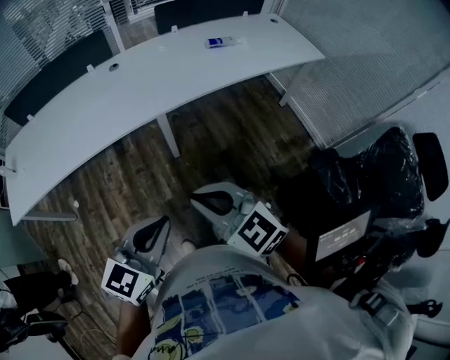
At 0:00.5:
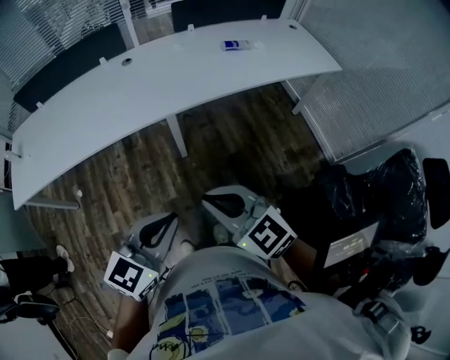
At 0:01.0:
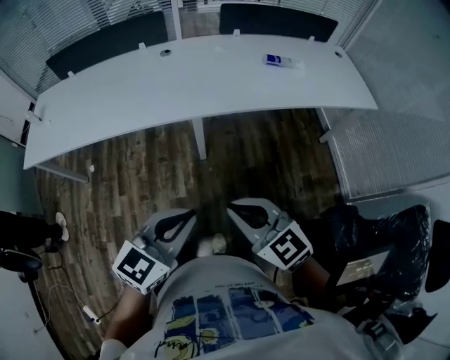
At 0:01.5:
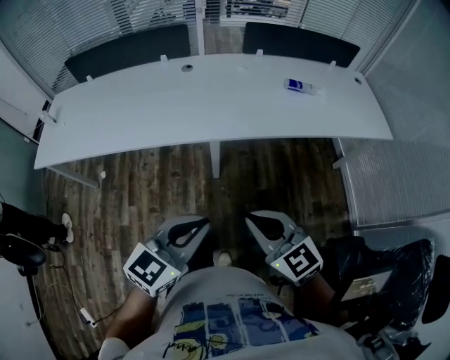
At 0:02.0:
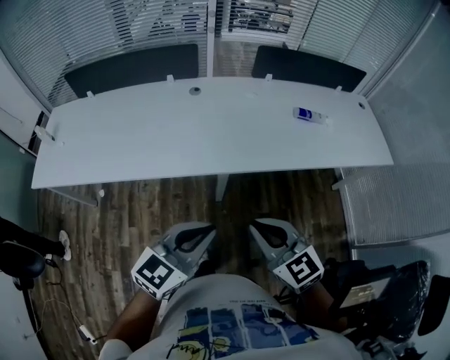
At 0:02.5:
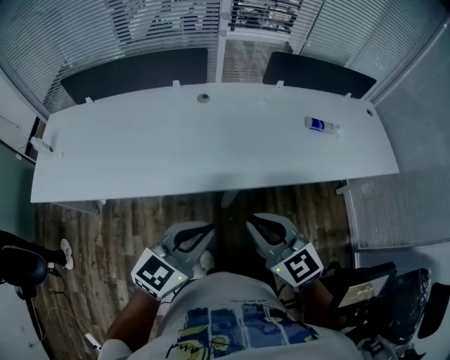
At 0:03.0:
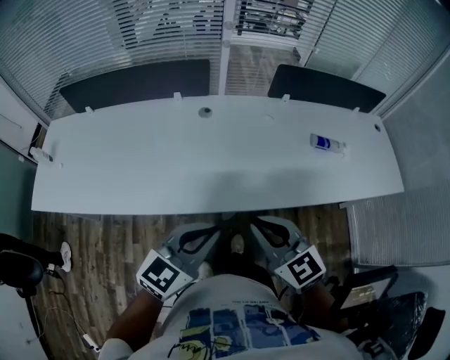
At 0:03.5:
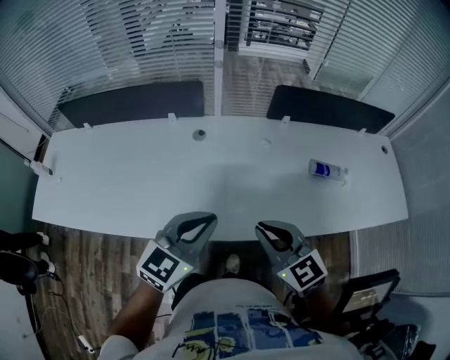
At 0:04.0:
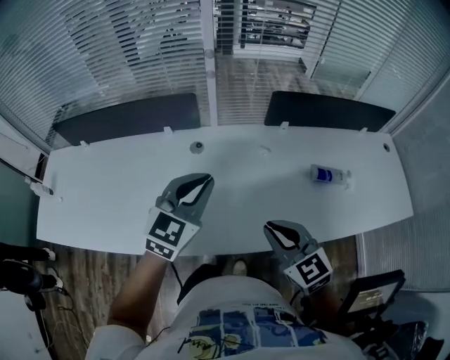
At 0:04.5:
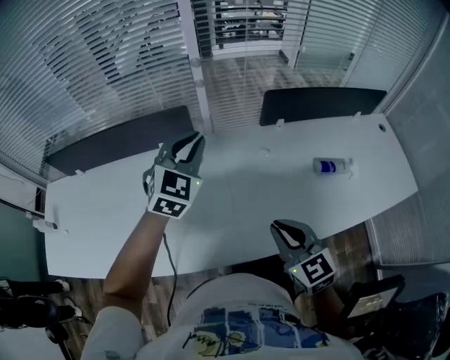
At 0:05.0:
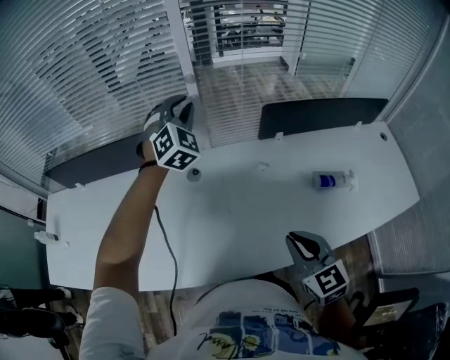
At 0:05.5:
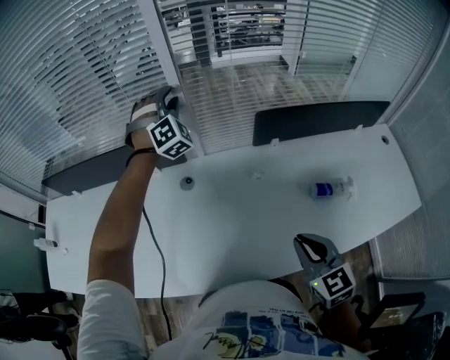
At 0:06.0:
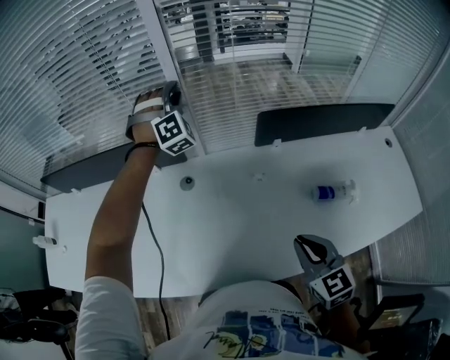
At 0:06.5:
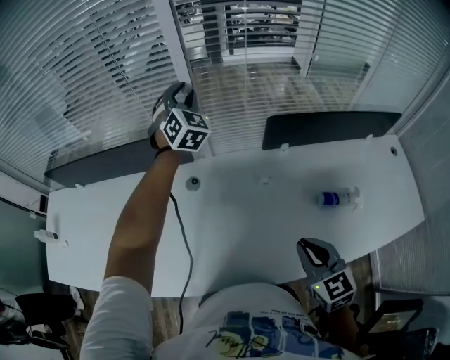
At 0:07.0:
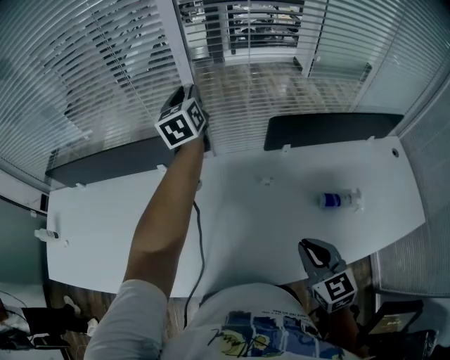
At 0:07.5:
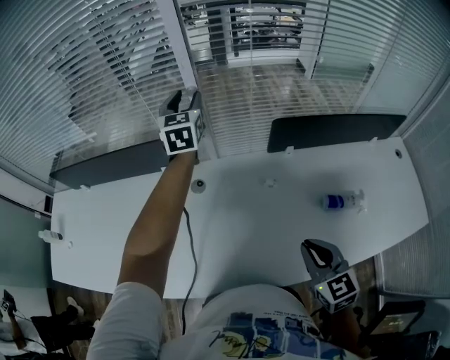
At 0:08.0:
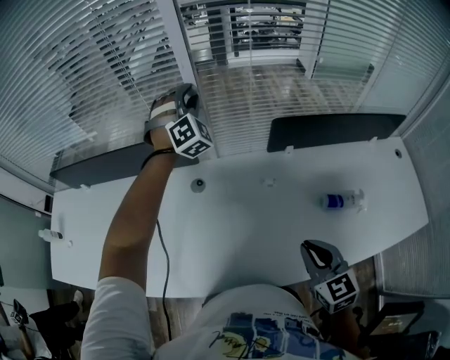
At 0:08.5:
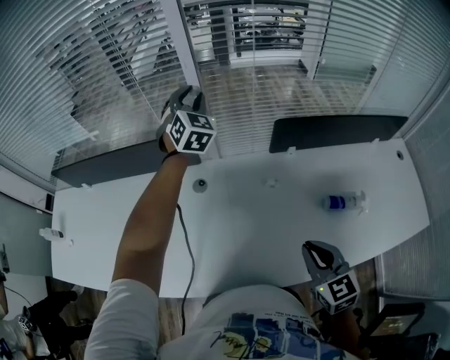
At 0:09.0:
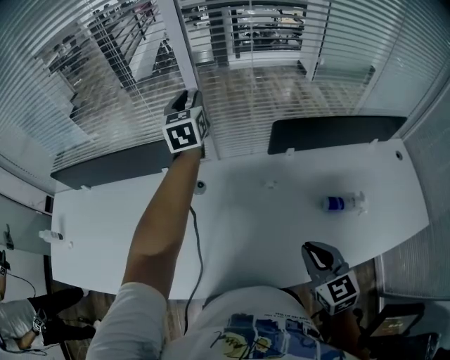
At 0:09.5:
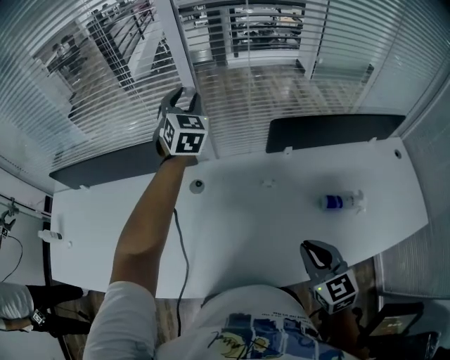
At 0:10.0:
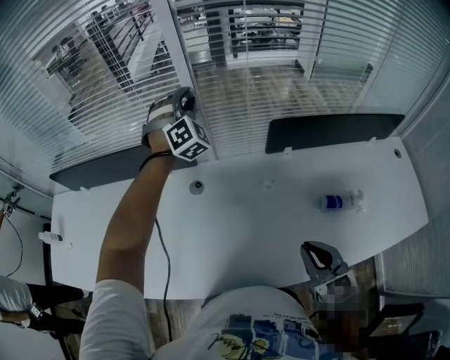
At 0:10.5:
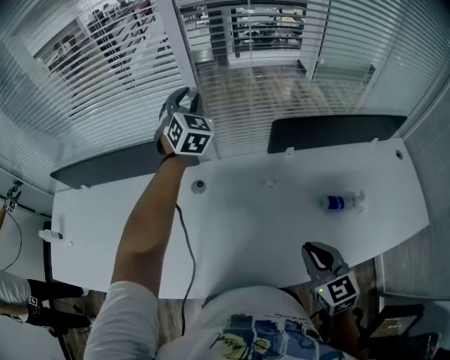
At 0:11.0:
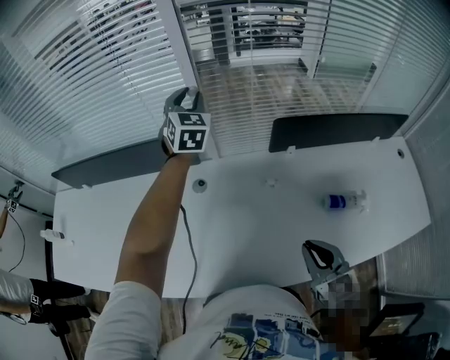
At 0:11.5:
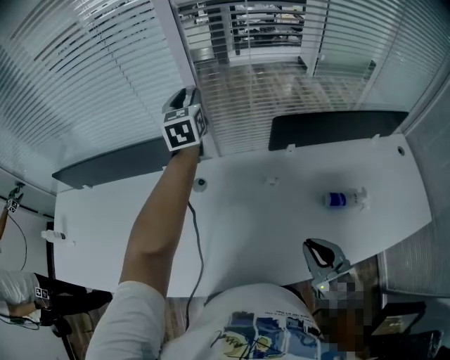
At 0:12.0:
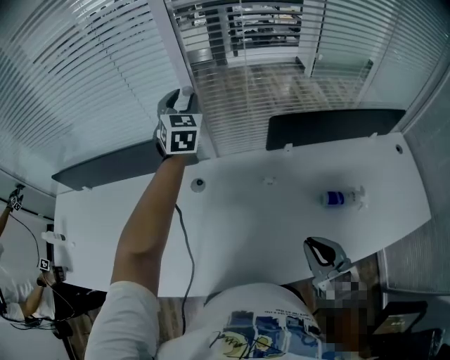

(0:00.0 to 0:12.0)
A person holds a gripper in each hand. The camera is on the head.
0:00.0 - 0:02.0: The two grippers go some 20 cm forward.
0:02.0 - 0:04.0: The two grippers go some 40 cm forward. The left gripper changes its angle by about 20 degrees.
0:04.0 - 0:06.0: The left gripper heads forward, covering about 40 cm, rotates around the line of its fingers by about 60 degrees, clockwise from behind, and opens. The right gripper moves to the right and forward, approximately 15 cm.
0:10.0 - 0:12.0: The left gripper rotates around the line of its fingers by some 50 degrees, counterclockwise from behind.

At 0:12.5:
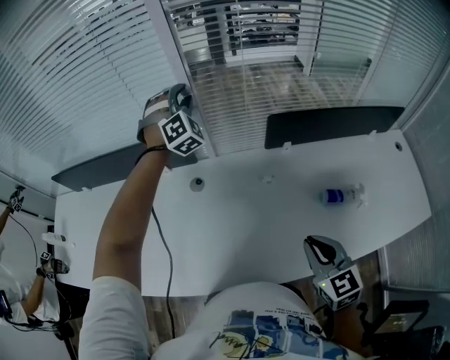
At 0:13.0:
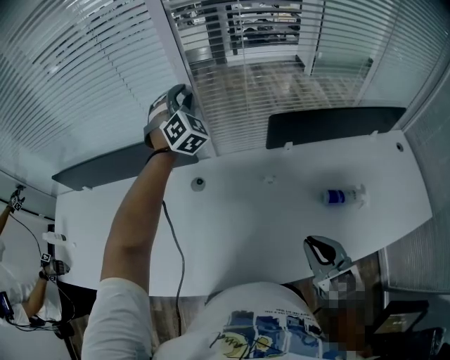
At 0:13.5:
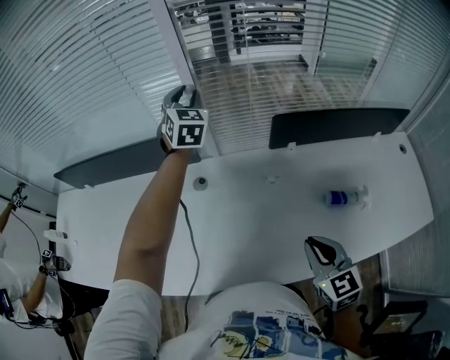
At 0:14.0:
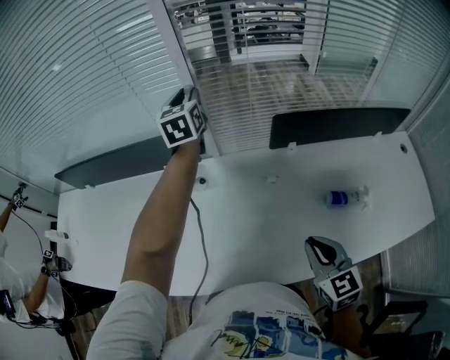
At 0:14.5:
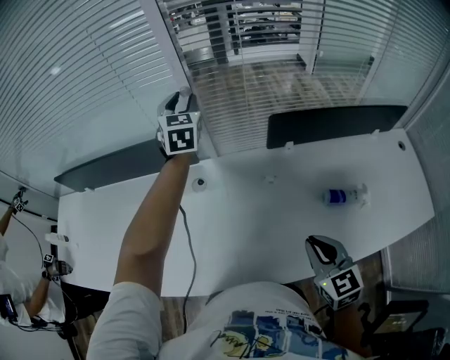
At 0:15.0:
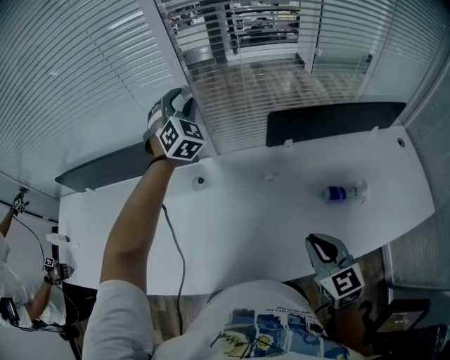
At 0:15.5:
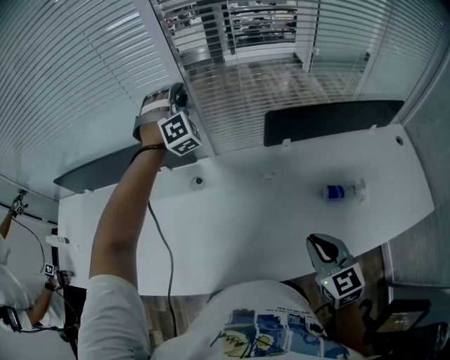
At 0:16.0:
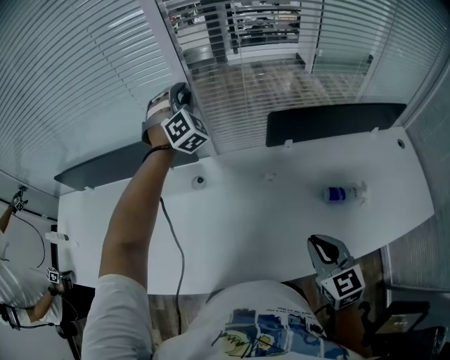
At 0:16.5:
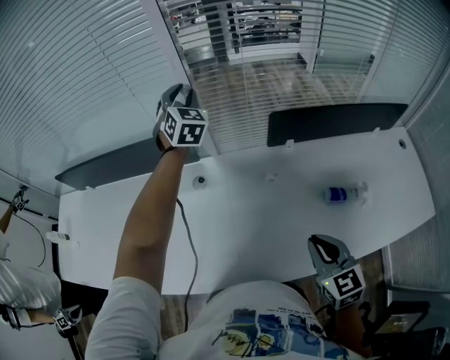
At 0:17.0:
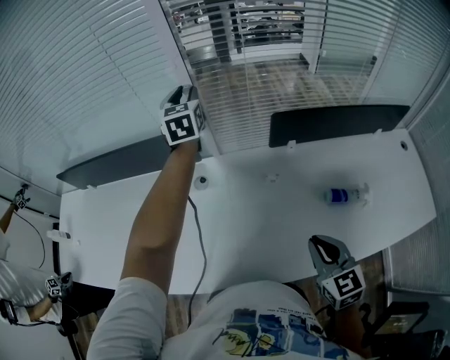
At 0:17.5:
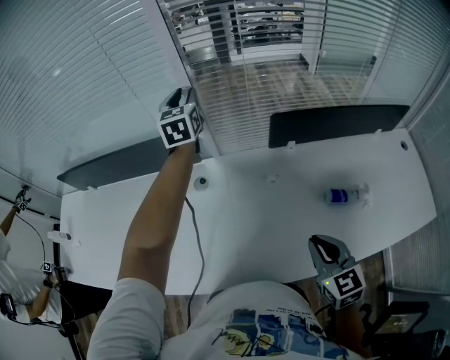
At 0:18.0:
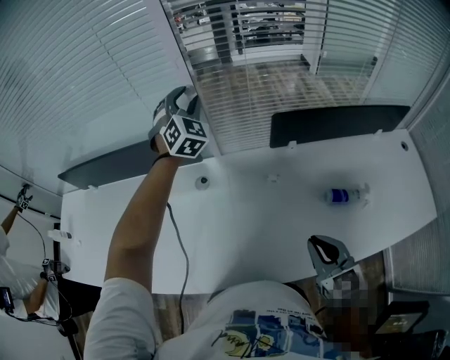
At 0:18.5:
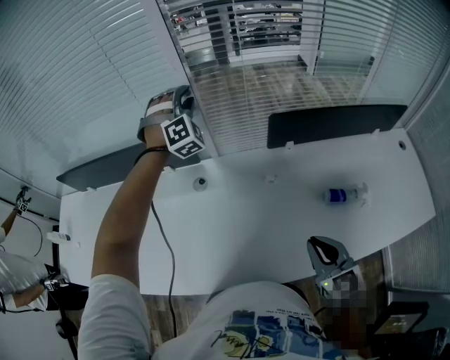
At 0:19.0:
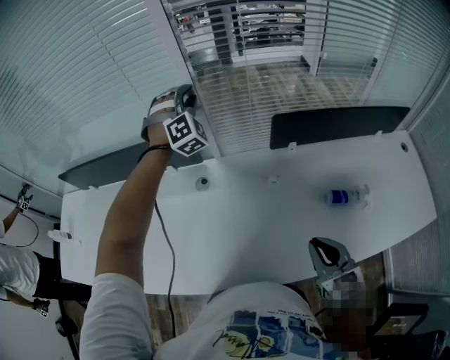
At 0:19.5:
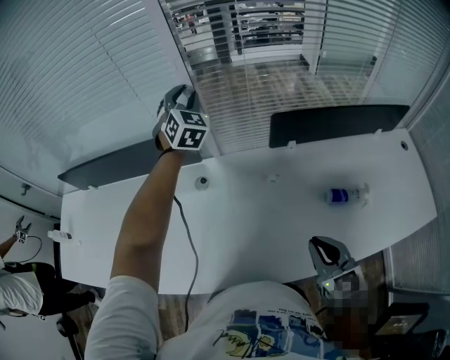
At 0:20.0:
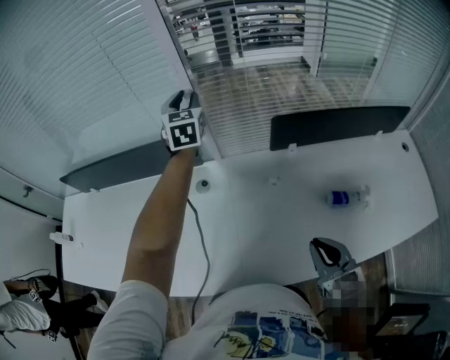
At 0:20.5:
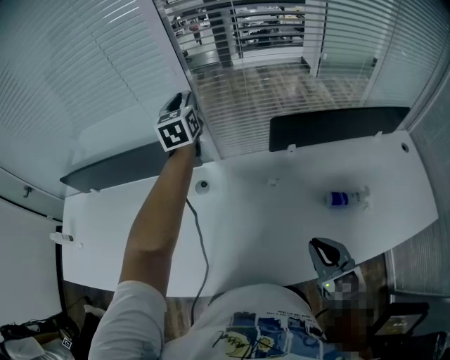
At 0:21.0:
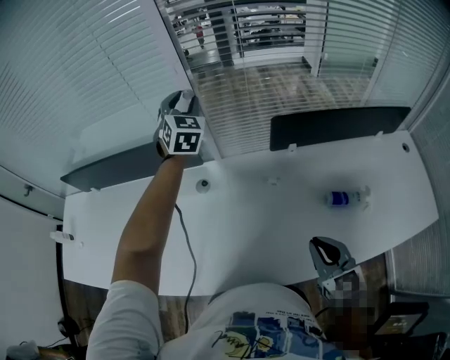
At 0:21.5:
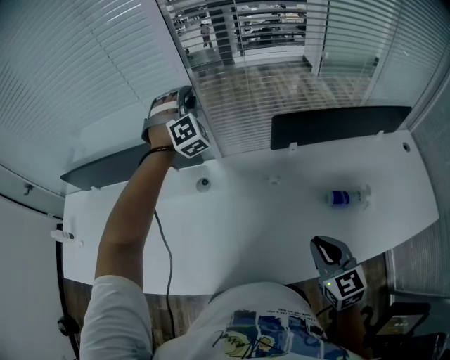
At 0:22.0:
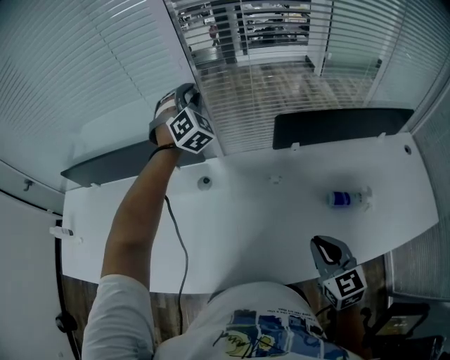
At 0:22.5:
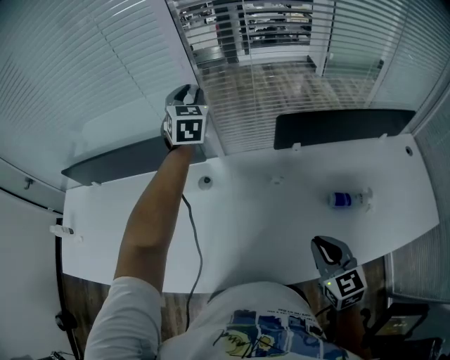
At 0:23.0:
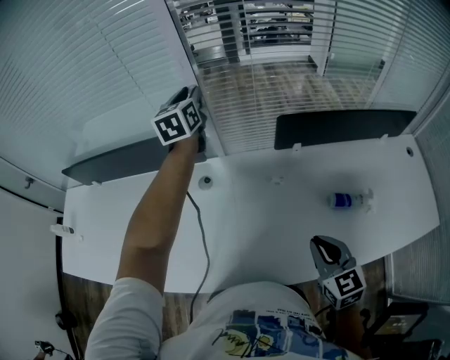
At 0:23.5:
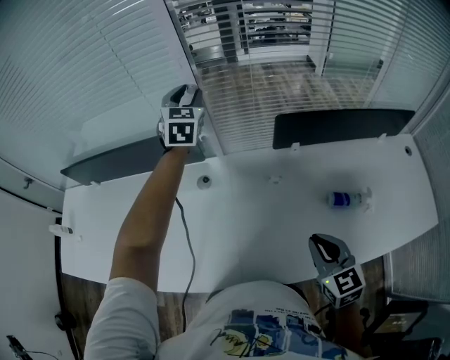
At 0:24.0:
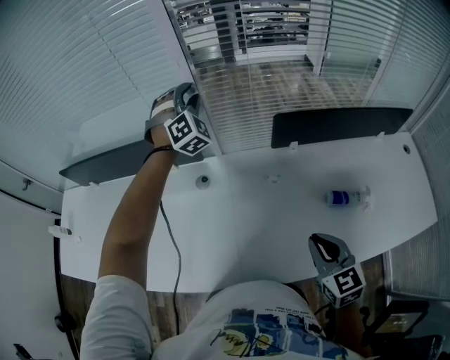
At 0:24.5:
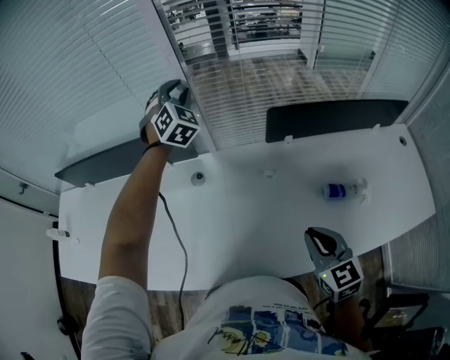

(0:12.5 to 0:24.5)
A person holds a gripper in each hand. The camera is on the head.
0:12.5 - 0:14.5: The left gripper rotates around the line of its fingers by approximately 60 degrees, counterclockwise from behind.
0:16.5 - 0:18.5: The left gripper twists about 50 degrees clockwise, seen from behind.
0:18.5 - 0:20.5: The left gripper twists approximately 80 degrees counterclockwise, seen from behind.
0:20.5 - 0:22.5: The left gripper changes its angle by approximately 20 degrees.
0:22.5 - 0:24.5: The left gripper rotates roughly 30 degrees.

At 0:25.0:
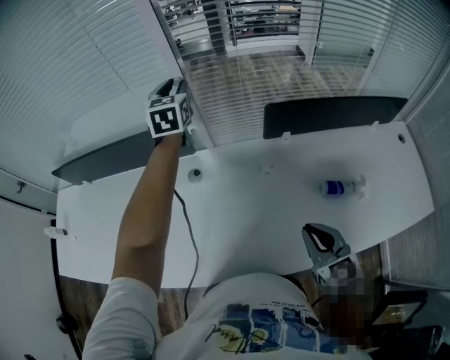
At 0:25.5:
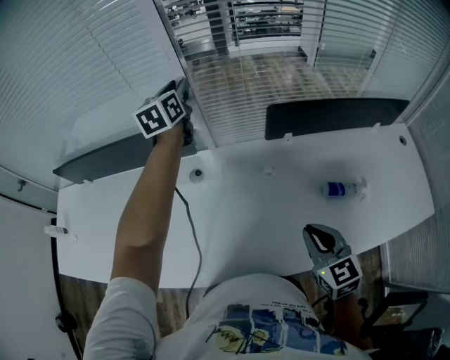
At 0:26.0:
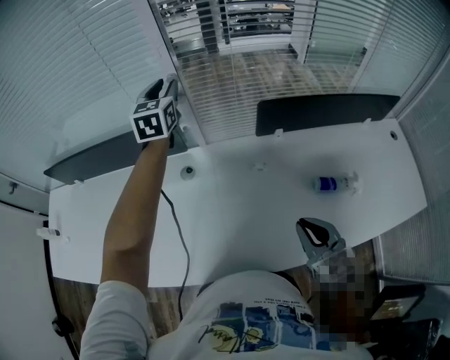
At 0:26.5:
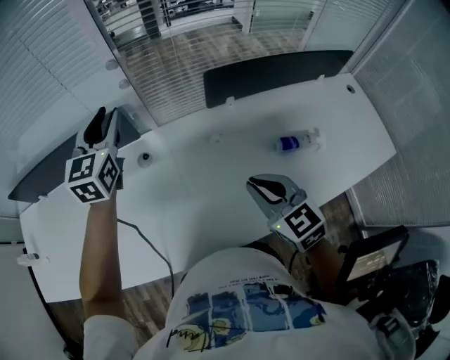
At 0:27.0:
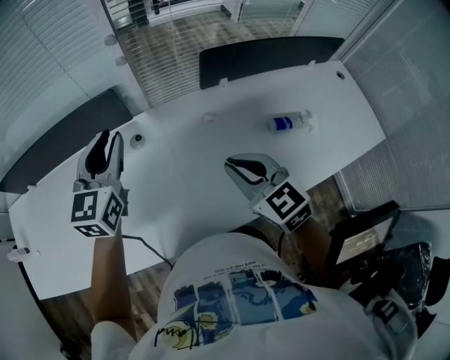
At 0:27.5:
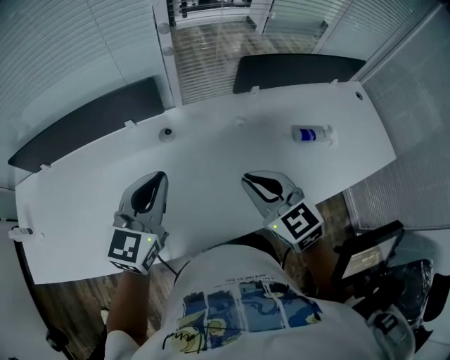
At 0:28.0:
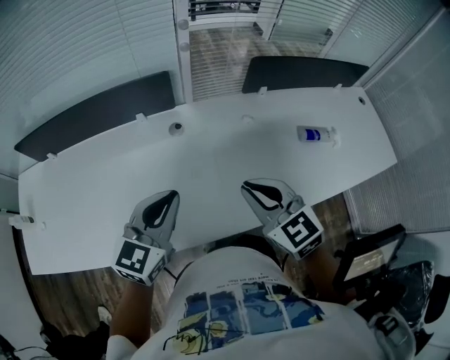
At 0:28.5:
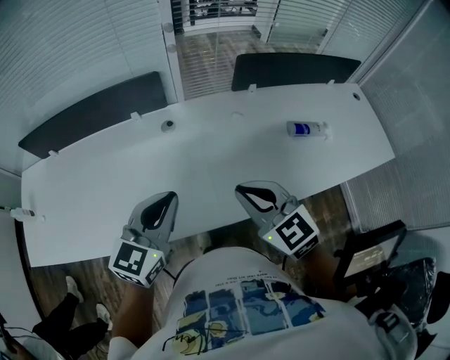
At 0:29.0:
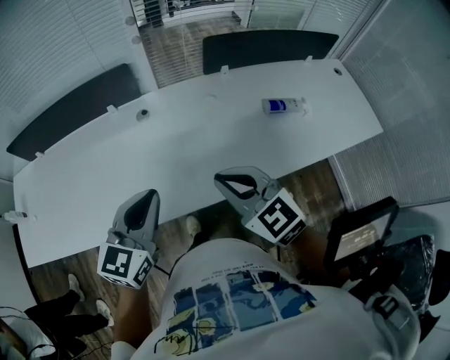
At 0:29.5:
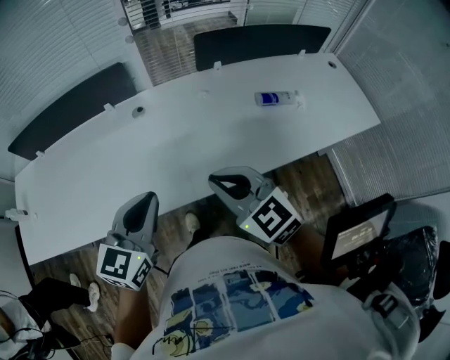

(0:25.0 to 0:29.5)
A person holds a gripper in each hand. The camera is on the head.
0:25.0 - 0:27.0: The left gripper moves backward, some 25 cm, and changes its angle by about 20 degrees, while the right gripper heads to the left, covering approximately 10 cm.
0:27.0 - 0:29.5: The right gripper shifts about 20 cm backward, while the left gripper heads backward, covering some 30 cm, and closes up.
